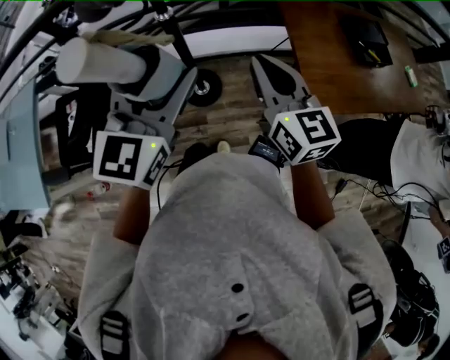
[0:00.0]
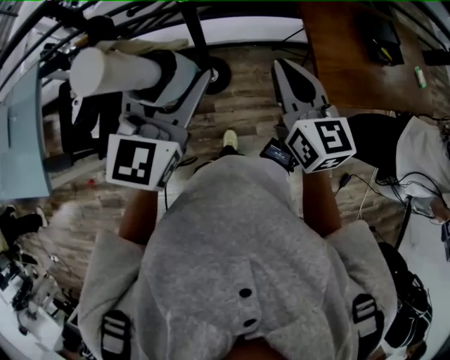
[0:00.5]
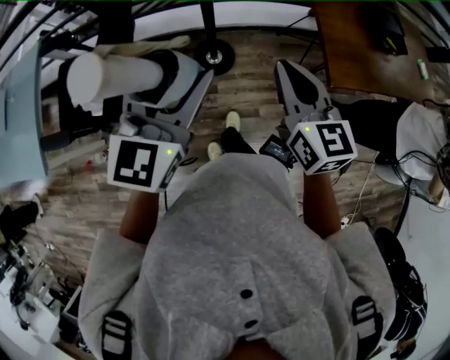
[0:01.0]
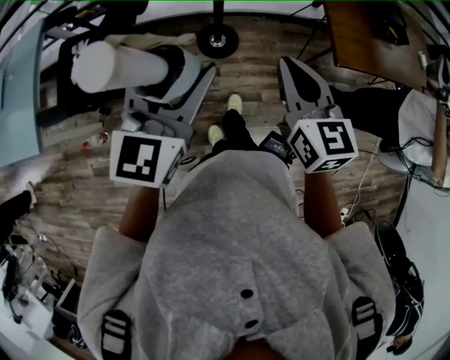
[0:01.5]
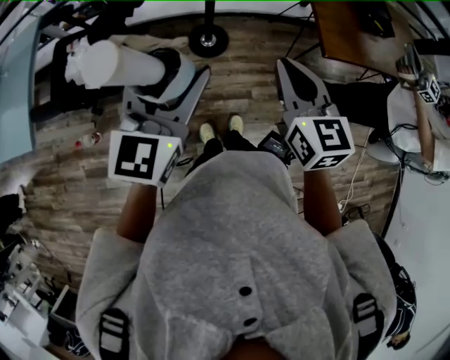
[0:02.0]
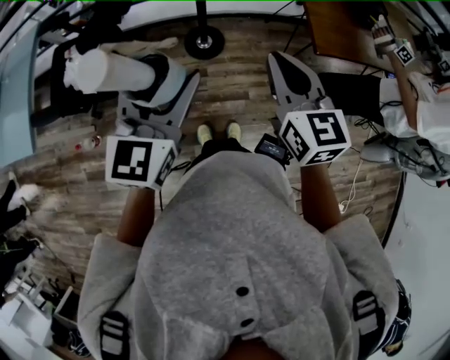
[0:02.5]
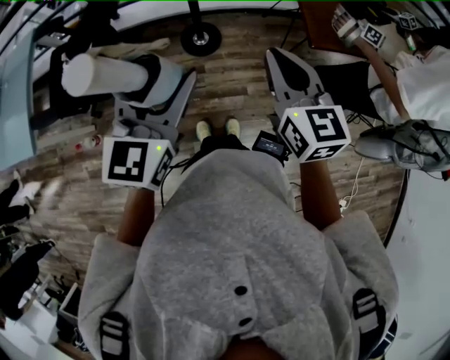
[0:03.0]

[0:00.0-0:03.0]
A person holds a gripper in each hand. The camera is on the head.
0:00.0 to 0:01.5: Both grippers travel together backward and to the left, approximately 20 cm.
0:01.5 to 0:03.0: The grippers both shift to the right by some 5 cm.

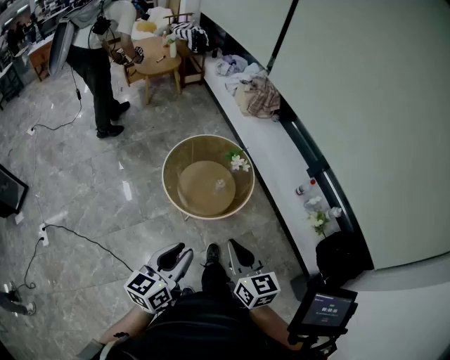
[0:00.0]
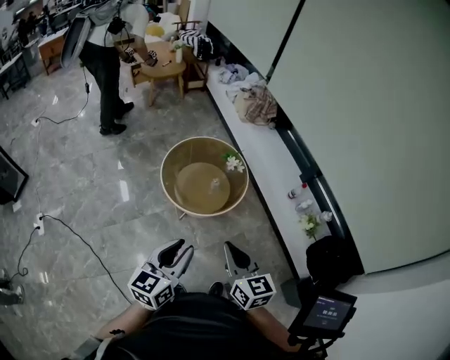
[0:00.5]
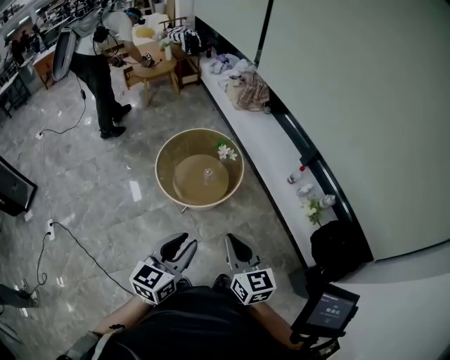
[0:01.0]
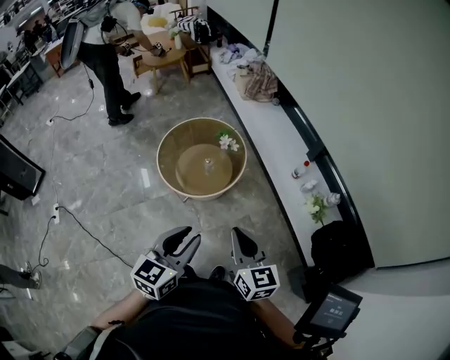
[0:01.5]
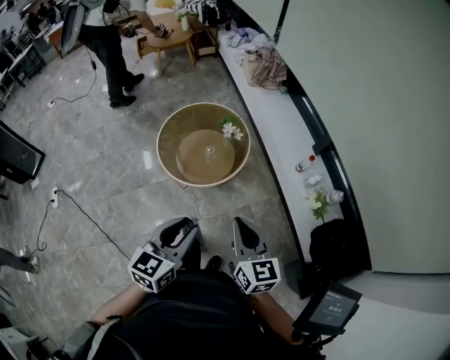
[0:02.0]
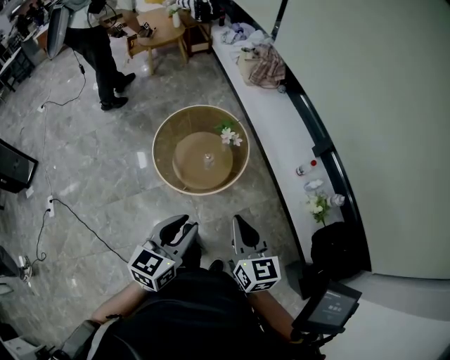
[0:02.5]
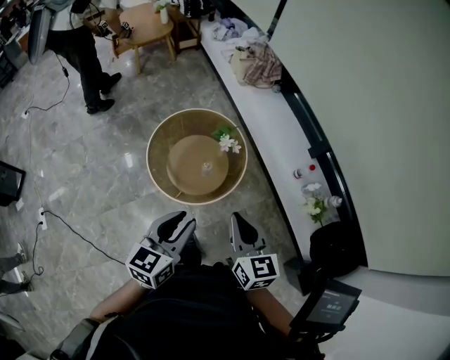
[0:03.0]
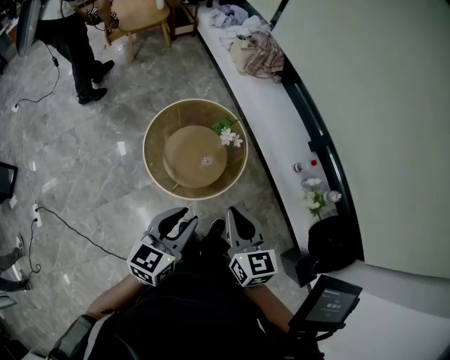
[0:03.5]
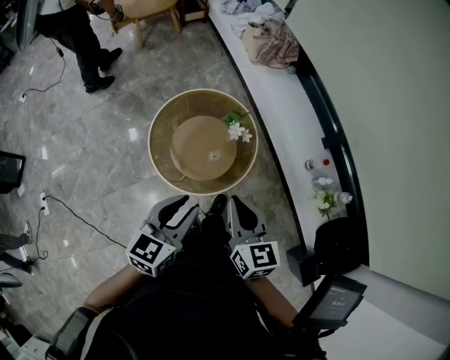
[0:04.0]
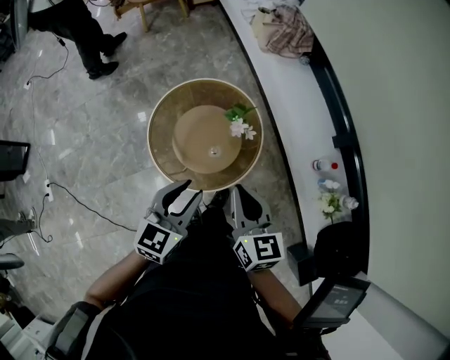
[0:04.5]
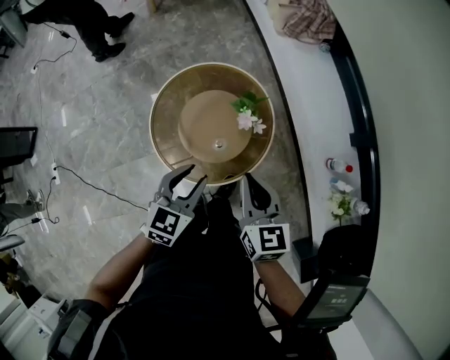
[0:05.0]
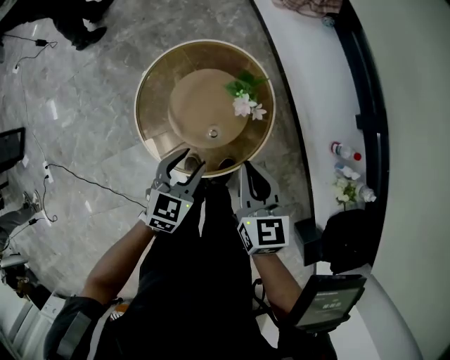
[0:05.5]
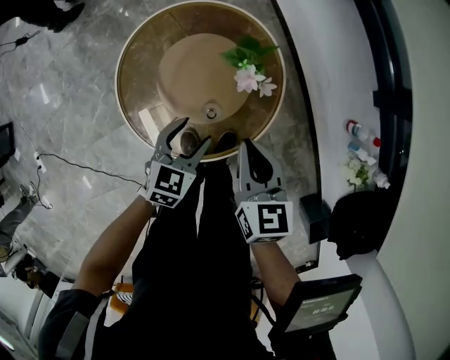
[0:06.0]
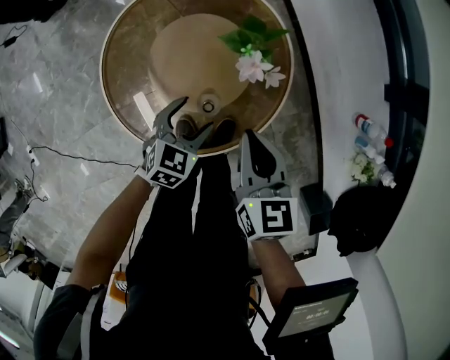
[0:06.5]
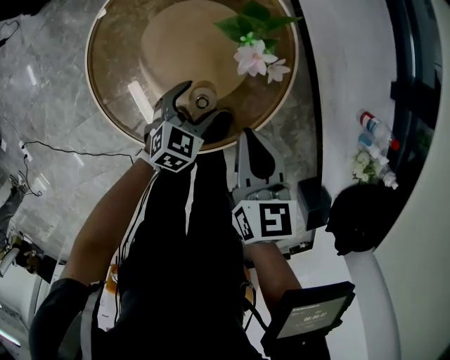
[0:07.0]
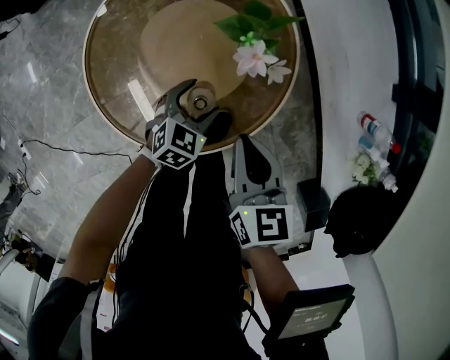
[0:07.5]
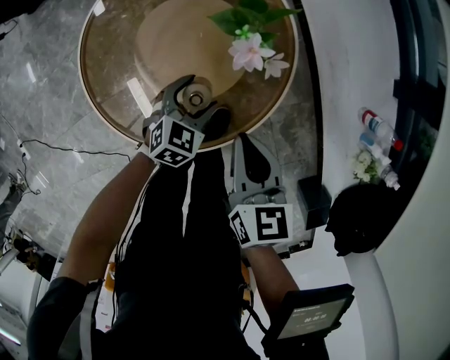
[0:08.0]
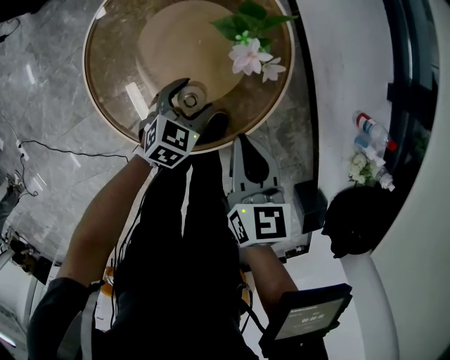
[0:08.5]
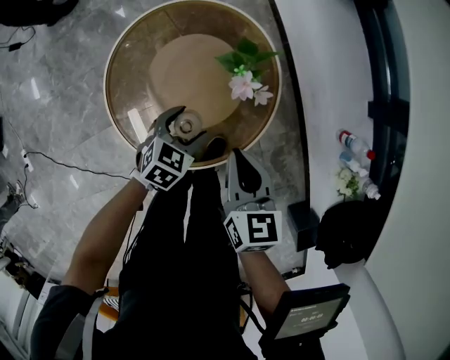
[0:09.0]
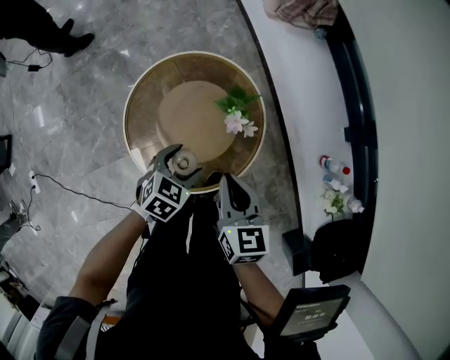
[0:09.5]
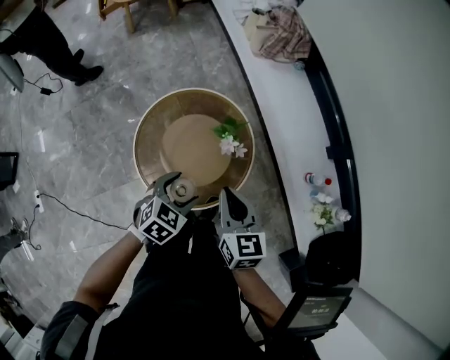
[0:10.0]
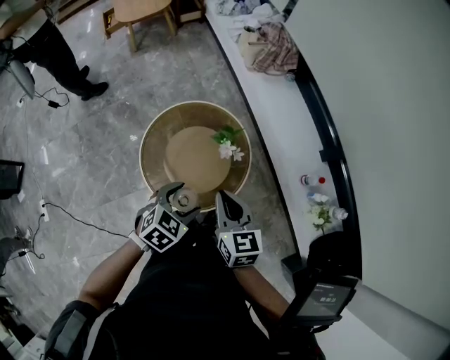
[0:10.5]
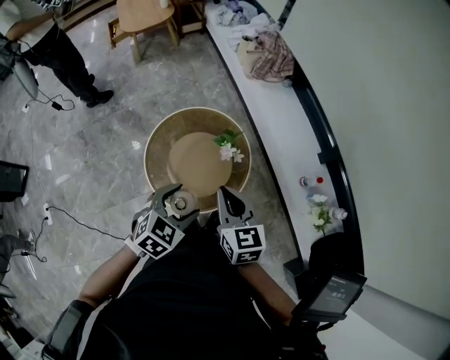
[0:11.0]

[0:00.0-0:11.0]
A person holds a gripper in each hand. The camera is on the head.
0:00.0 to 0:02.0: The grippers both shift to the right by some 20 cm.
0:02.0 to 0:03.5: Both grippers travel together forward and to the left, some 20 cm.
0:03.5 to 0:05.5: The left gripper moves downward and forward, some 30 cm, and rotates about 20 degrees. The right gripper is displaced forward and downward by about 25 cm.
0:05.5 to 0:07.5: The right gripper shifts approximately 20 cm downward; the left gripper travels downward by roughly 30 cm, and opens.
0:07.5 to 0:09.0: Both grippers travel together upward, approximately 10 cm.
0:09.0 to 0:11.0: The two grippers go about 30 cm upward.

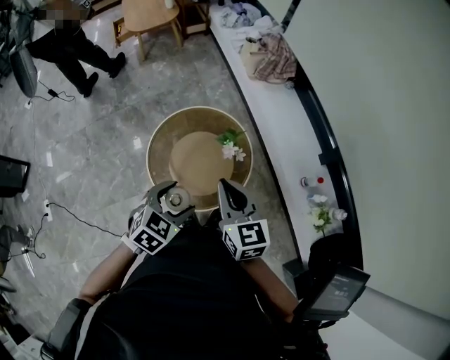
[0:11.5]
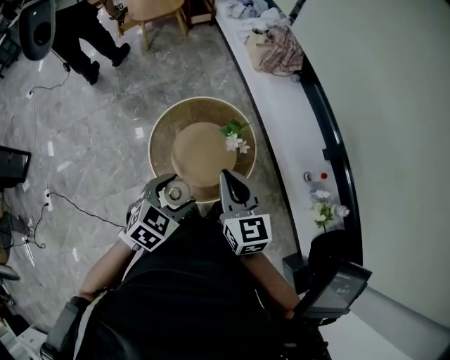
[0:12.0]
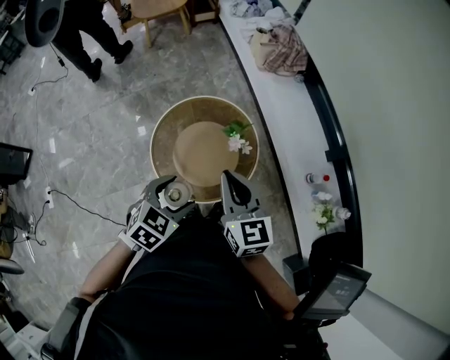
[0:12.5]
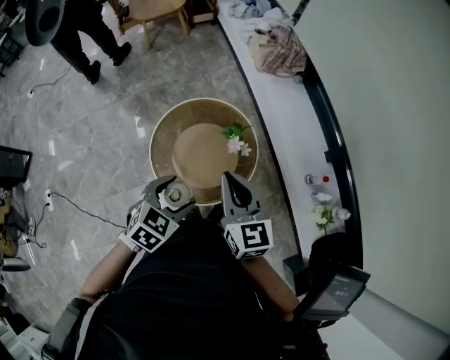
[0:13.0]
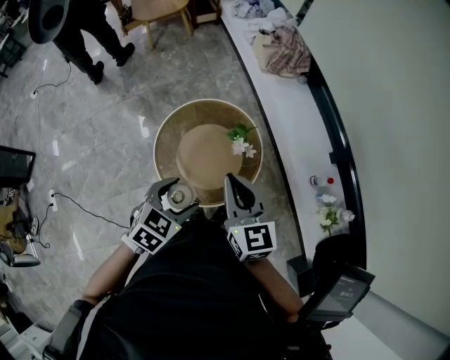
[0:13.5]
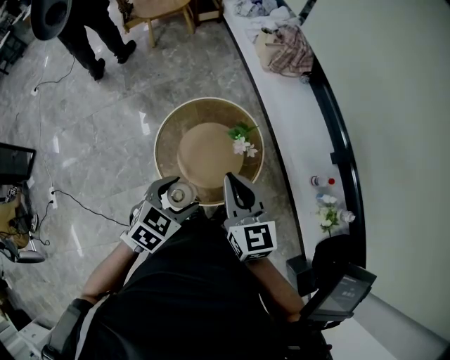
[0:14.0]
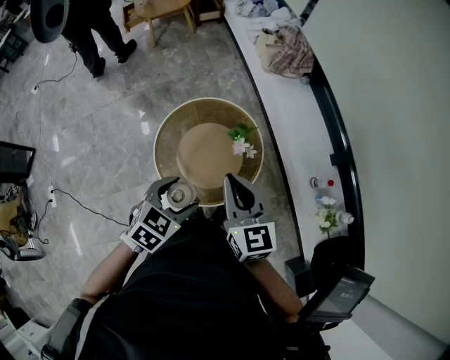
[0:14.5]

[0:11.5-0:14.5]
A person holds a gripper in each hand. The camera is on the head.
0:11.5 to 0:13.0: The grippers move only a little.
0:13.0 to 0:14.5: The two grippers keep their place.

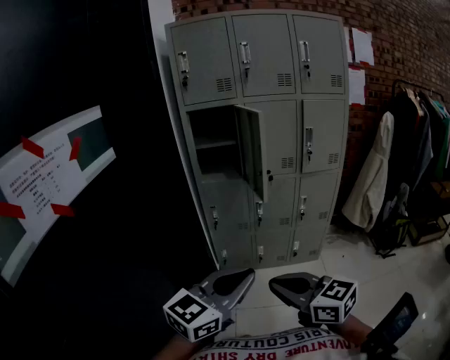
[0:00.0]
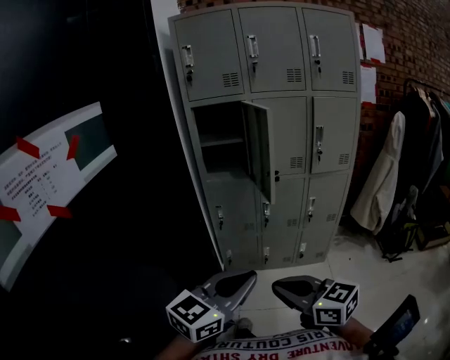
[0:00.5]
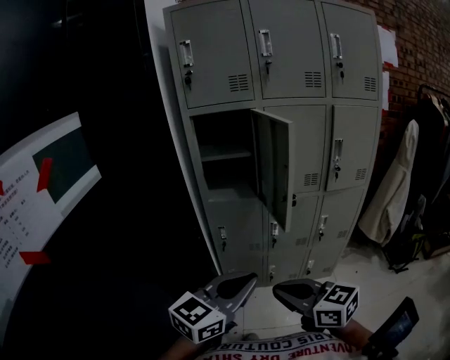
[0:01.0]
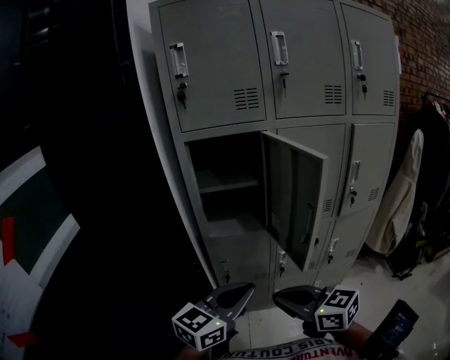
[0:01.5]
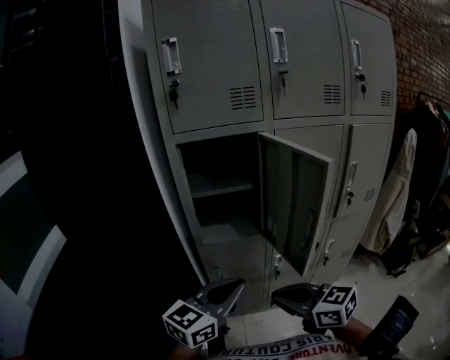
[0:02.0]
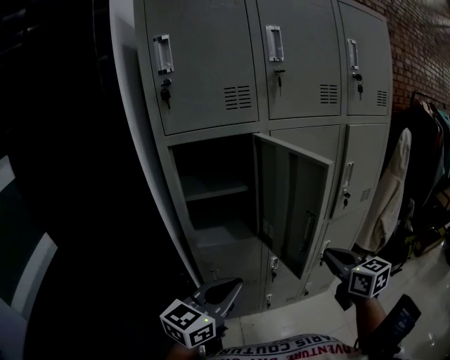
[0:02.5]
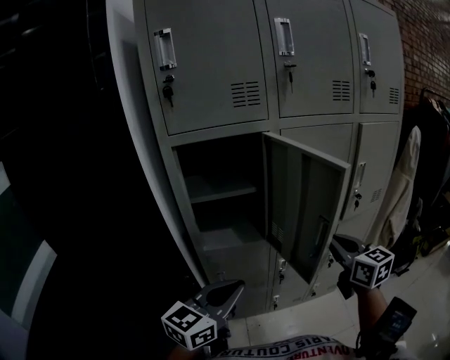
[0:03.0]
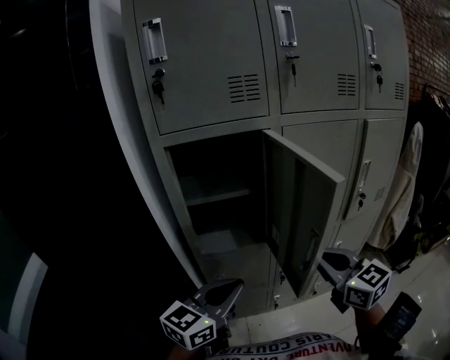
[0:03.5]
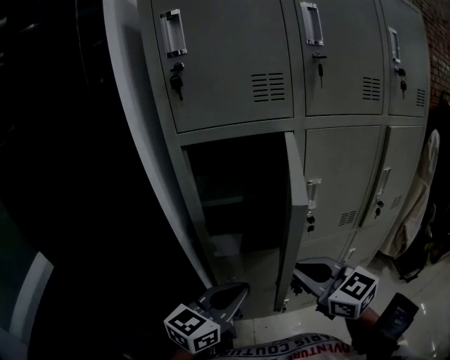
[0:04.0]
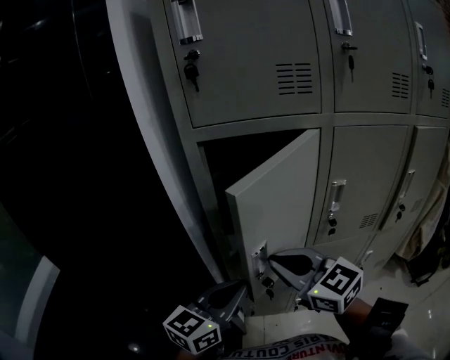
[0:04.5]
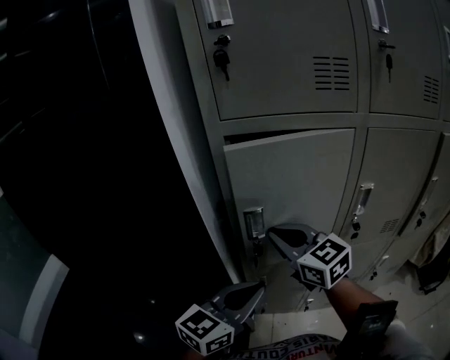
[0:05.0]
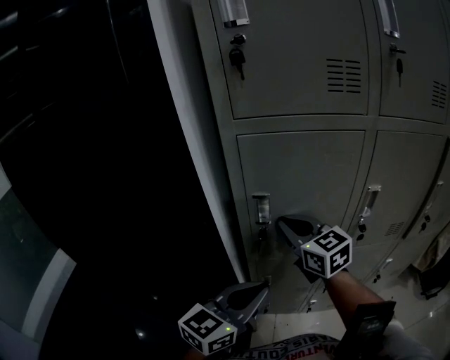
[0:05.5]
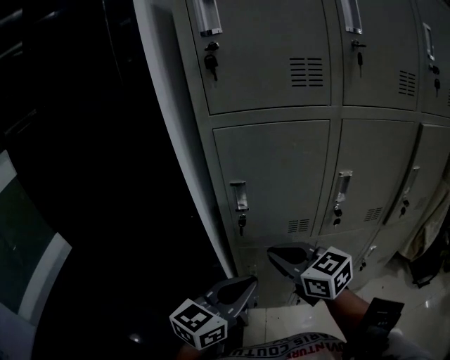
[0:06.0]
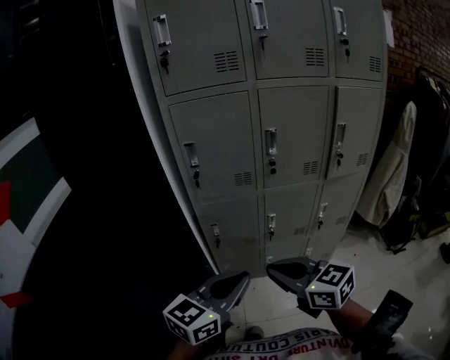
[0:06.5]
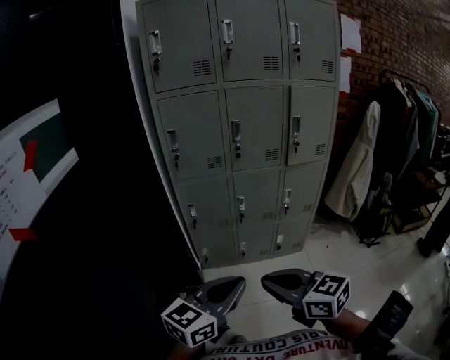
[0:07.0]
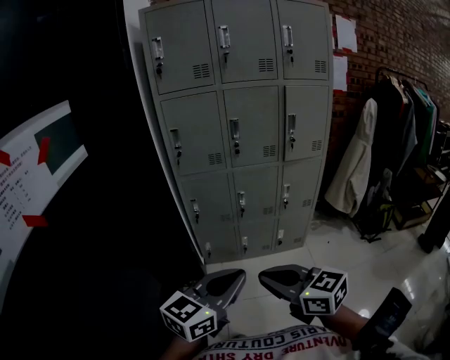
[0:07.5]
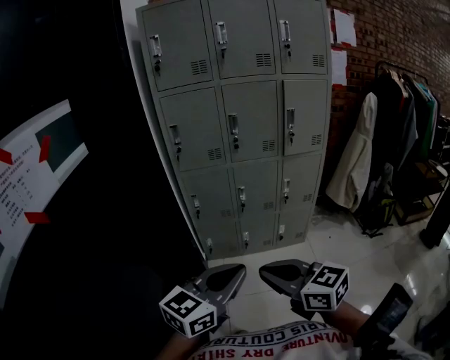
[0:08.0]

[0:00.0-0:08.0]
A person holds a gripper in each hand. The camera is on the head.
0:00.0 to 0:02.0: The two grippers travel together, forward, some 40 cm.
0:02.0 to 0:04.0: The right gripper goes approximately 15 cm forward and upward, and goes to the right and returns, about 15 cm each way, while the left gripper goes roughly 10 cm forward.
0:04.0 to 0:06.0: The right gripper heads to the left, covering about 10 cm, and reaches approximately 20 cm forward, then returns.
0:06.0 to 0:08.0: The pair of grippers is taken backward, some 50 cm.

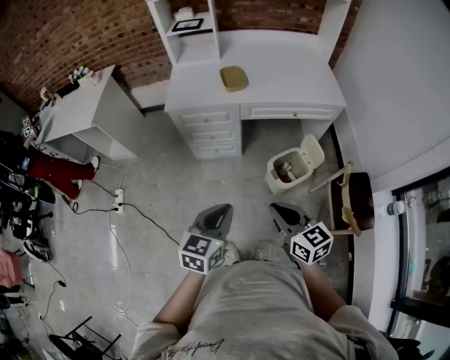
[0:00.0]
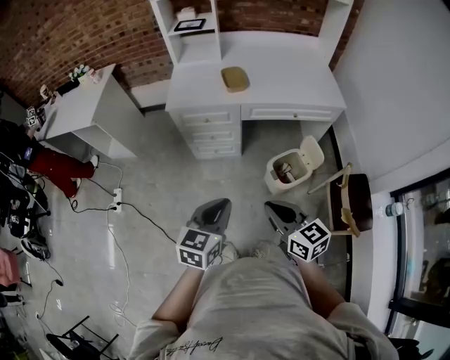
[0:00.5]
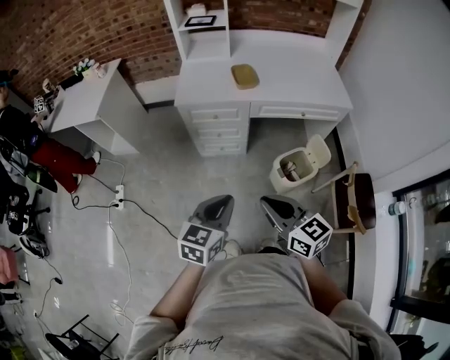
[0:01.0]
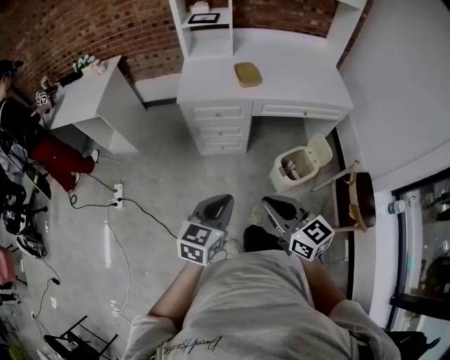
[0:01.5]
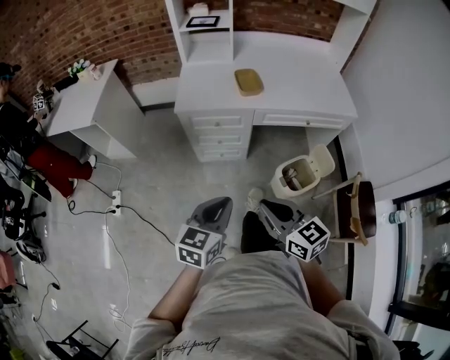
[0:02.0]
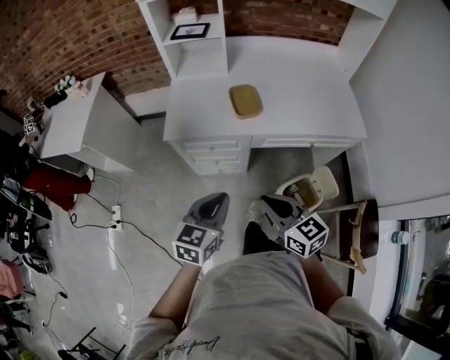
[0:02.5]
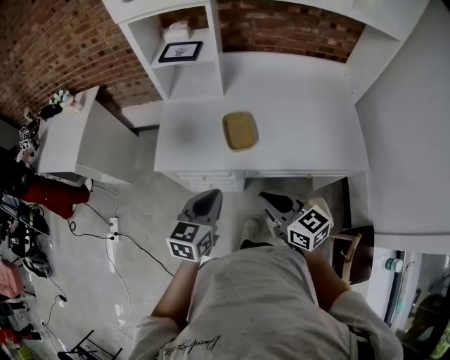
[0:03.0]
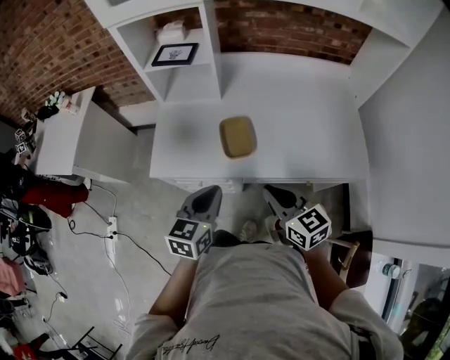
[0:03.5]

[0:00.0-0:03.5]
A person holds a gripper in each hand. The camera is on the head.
0:00.0 to 0:02.0: The grippers both shift to the left and forward by about 10 cm.
0:02.0 to 0:03.5: The two grippers travel together, forward, some 40 cm.
